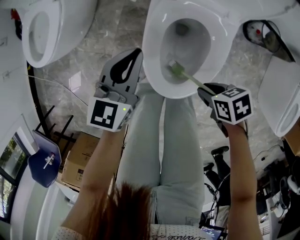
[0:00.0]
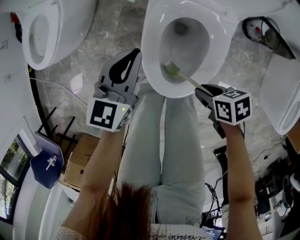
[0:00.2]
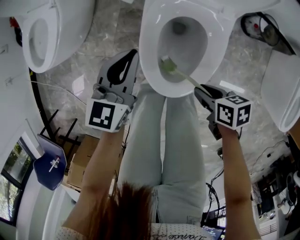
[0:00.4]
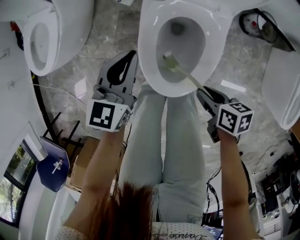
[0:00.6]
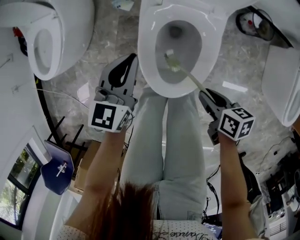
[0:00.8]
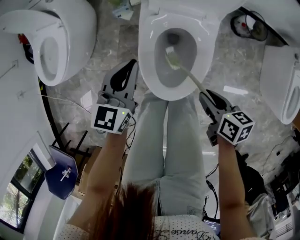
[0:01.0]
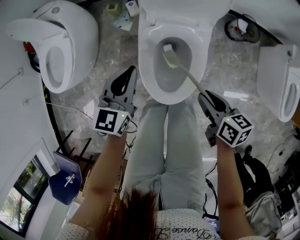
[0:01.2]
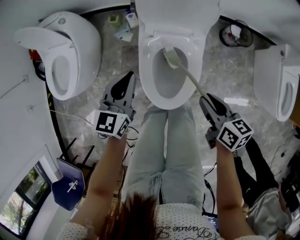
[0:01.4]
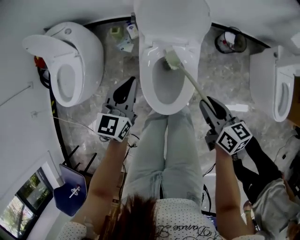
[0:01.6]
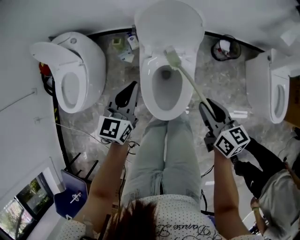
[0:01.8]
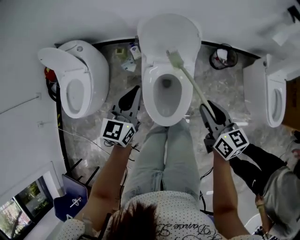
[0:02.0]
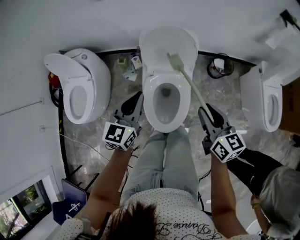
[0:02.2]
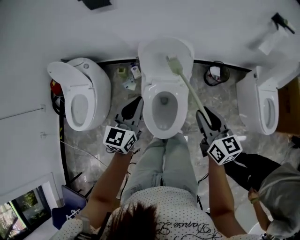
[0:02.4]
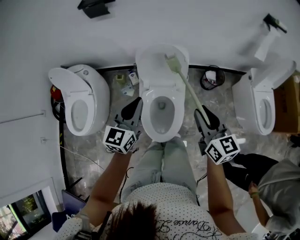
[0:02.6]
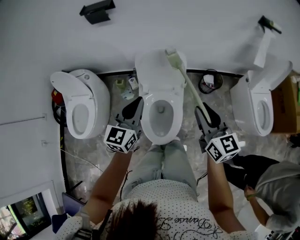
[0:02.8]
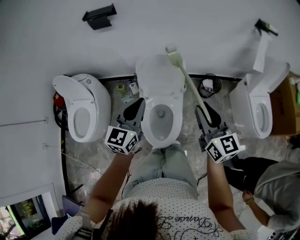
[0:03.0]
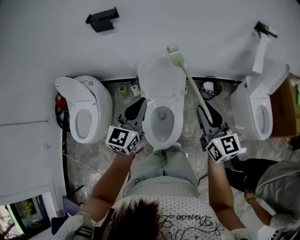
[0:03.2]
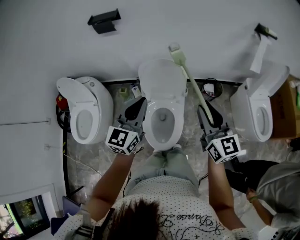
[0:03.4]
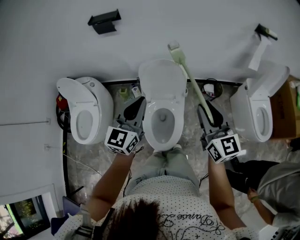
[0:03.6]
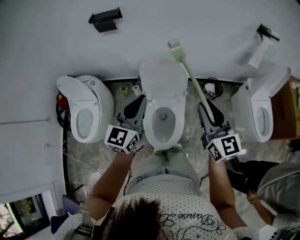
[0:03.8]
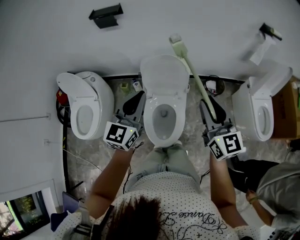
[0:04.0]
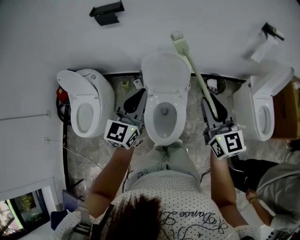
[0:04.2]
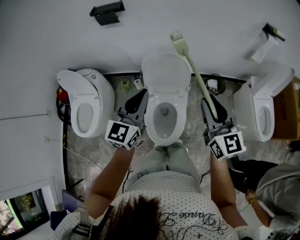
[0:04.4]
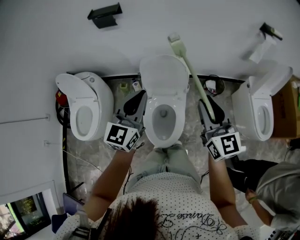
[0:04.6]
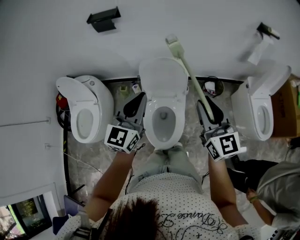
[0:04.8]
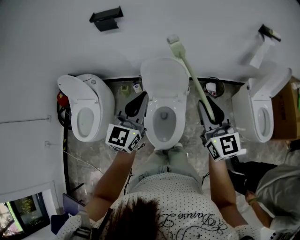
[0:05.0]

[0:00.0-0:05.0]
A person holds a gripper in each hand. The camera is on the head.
0:00.0 to 0:01.6: The grippers both shift upward by roughly 20 cm. The right gripper points its fingers about 30 degrees further upward.
0:01.6 to 0:03.4: Both grippers travel together upward, about 30 cm. The right gripper rotates roughly 40 degrees.
0:03.4 to 0:05.0: There are only small adjustments of the grippers.

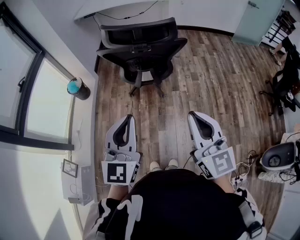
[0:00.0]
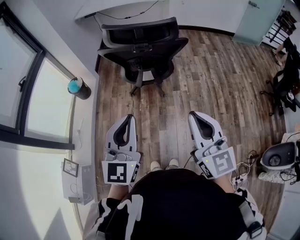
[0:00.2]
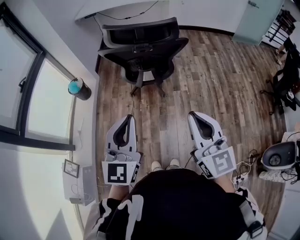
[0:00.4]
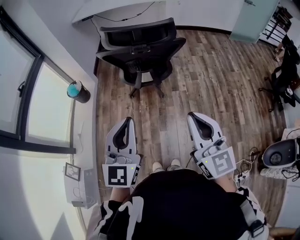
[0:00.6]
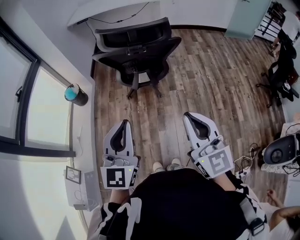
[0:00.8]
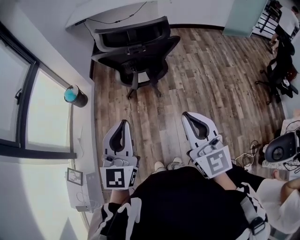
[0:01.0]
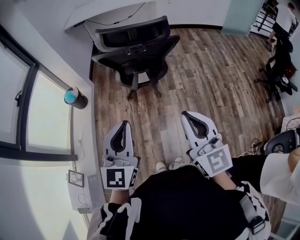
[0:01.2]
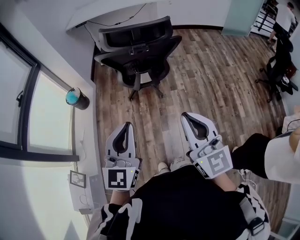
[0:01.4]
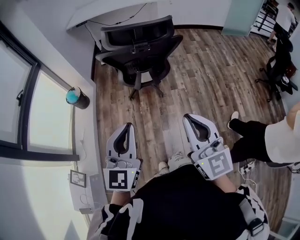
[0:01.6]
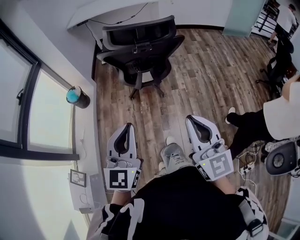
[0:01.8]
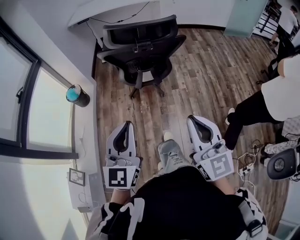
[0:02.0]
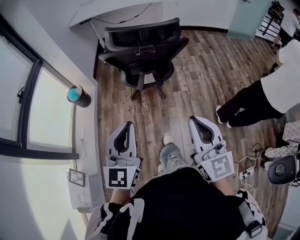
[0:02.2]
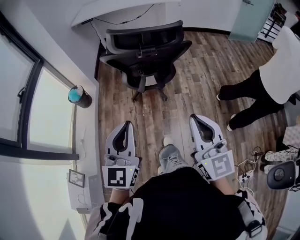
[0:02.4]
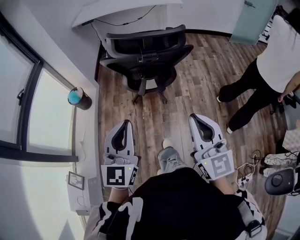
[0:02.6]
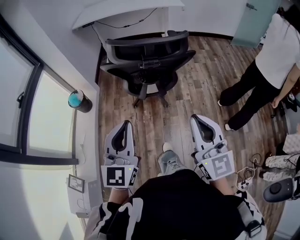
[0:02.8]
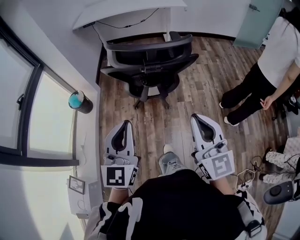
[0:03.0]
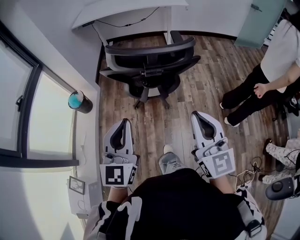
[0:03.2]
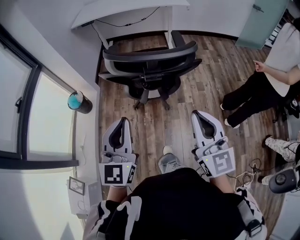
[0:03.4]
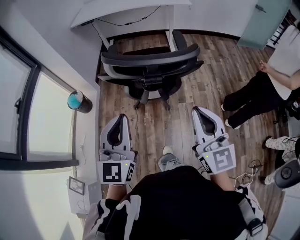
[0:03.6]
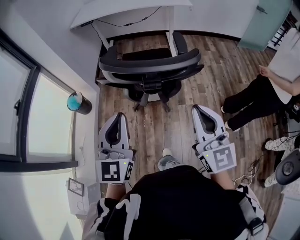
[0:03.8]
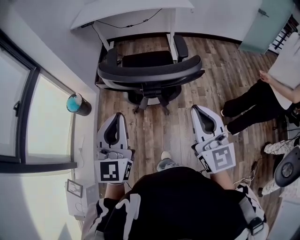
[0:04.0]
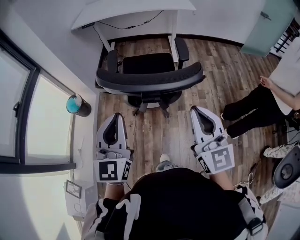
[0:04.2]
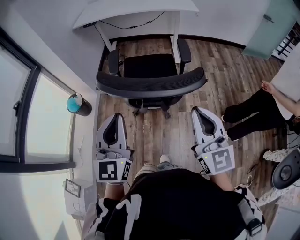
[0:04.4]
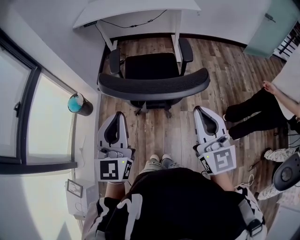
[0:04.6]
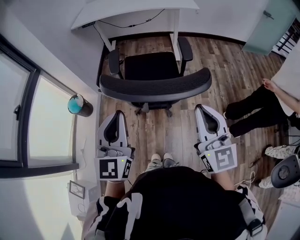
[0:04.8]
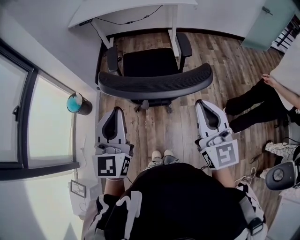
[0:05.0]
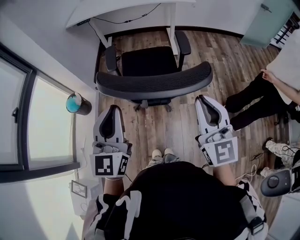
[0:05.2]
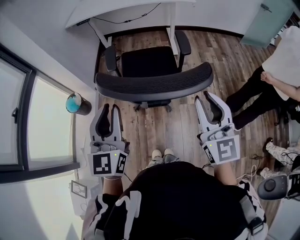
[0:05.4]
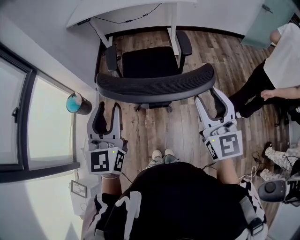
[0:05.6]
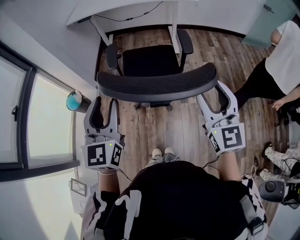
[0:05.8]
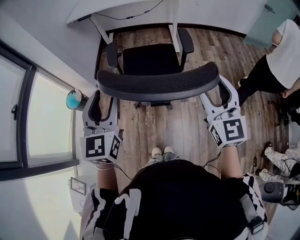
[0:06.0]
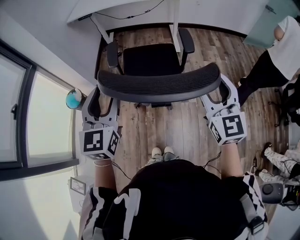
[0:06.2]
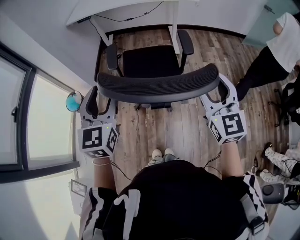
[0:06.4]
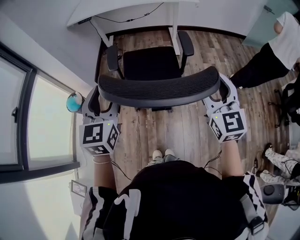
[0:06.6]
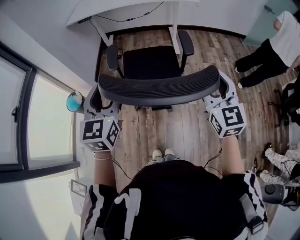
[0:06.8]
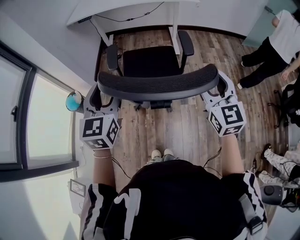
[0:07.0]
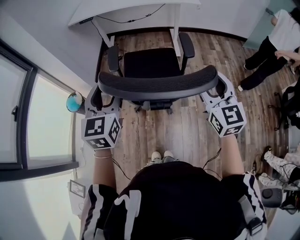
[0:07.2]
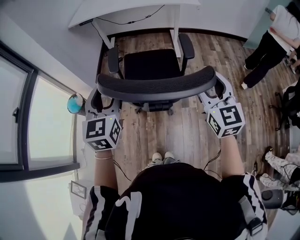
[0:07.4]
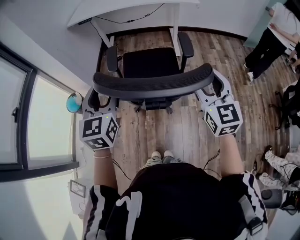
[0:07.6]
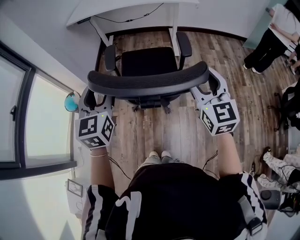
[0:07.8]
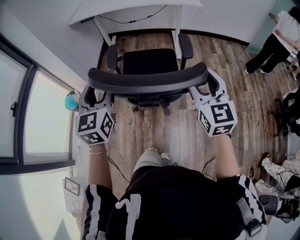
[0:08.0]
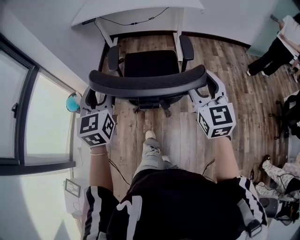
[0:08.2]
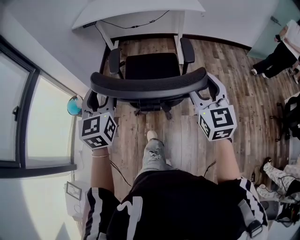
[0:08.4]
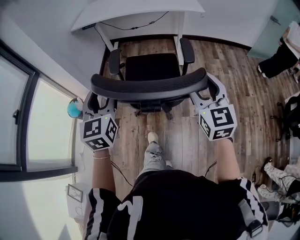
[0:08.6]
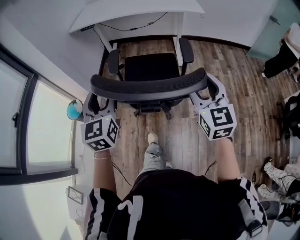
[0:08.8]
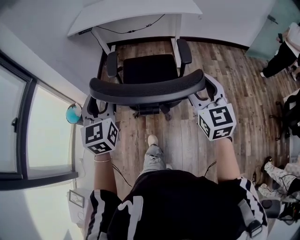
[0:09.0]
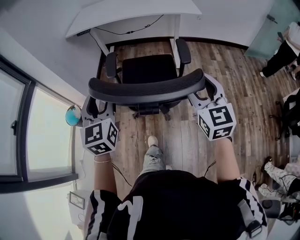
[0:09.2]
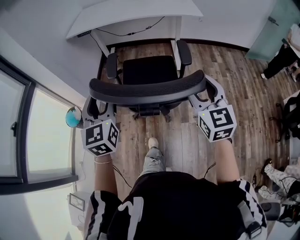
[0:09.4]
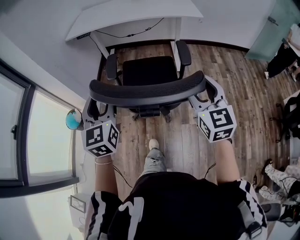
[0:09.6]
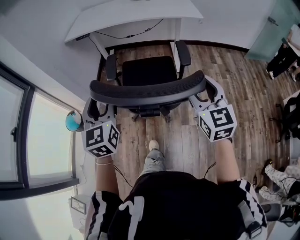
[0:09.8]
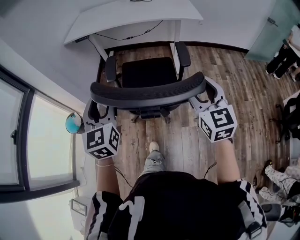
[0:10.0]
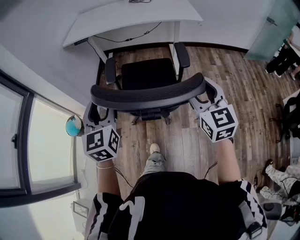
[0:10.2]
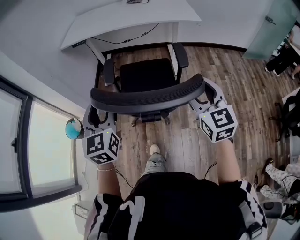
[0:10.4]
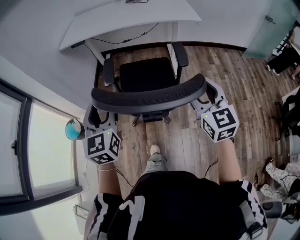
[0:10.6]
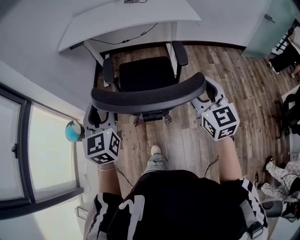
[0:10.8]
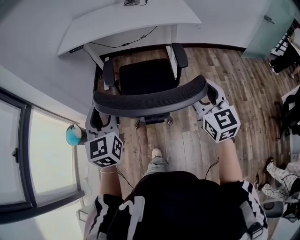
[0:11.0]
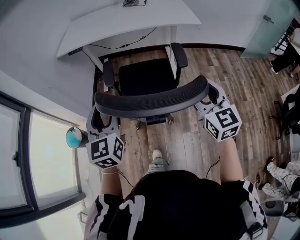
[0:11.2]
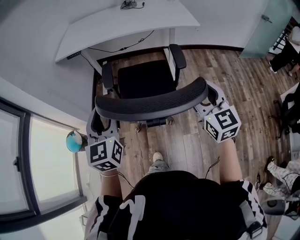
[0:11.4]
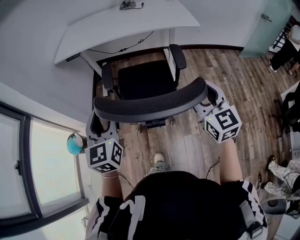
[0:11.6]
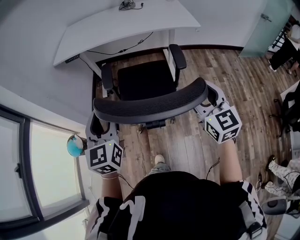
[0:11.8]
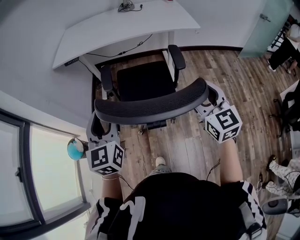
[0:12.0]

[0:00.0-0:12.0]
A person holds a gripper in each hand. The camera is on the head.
0:00.0 to 0:01.6: Both grippers travel together to the left, approximately 5 cm.
0:01.6 to 0:03.0: The grippers both shift forward by roughly 15 cm.
0:03.0 to 0:04.4: The two grippers go roughly 15 cm forward.
0:04.4 to 0:06.0: The two grippers go about 10 cm forward. The left gripper opens its fingers. The right gripper opens up.
0:06.0 to 0:07.6: The two grippers go some 5 cm forward.
0:07.6 to 0:09.0: Both grippers travel together forward, approximately 5 cm.
0:09.0 to 0:10.4: Both grippers move forward, about 10 cm.
0:10.4 to 0:12.0: The two grippers go some 10 cm forward.

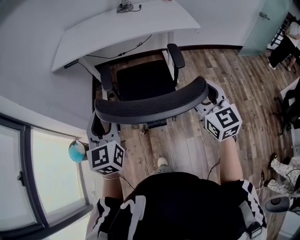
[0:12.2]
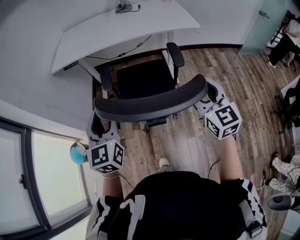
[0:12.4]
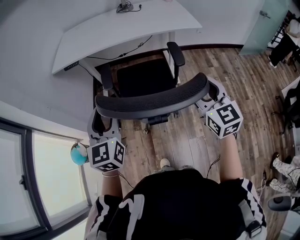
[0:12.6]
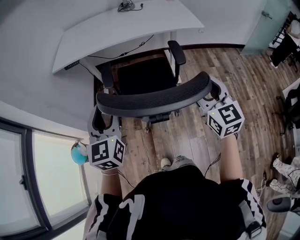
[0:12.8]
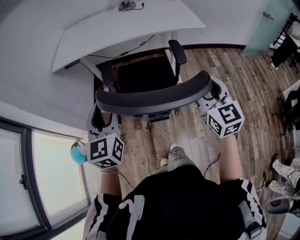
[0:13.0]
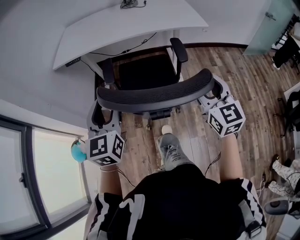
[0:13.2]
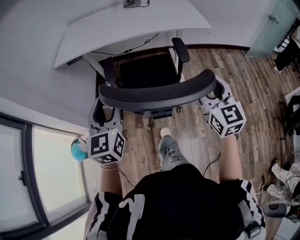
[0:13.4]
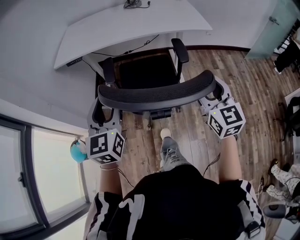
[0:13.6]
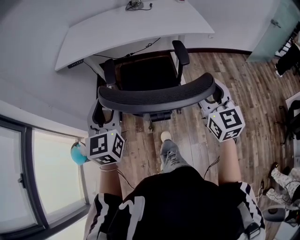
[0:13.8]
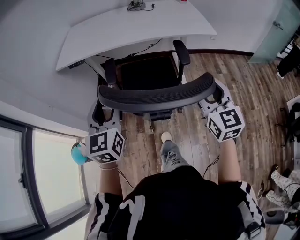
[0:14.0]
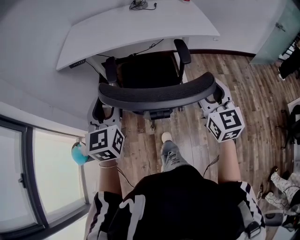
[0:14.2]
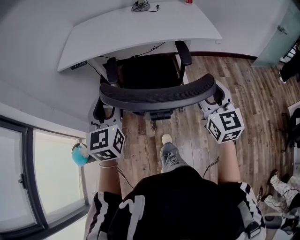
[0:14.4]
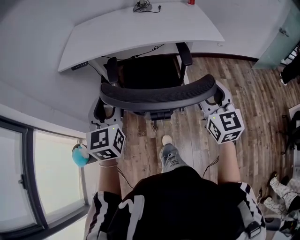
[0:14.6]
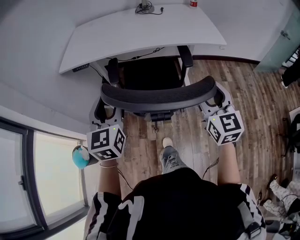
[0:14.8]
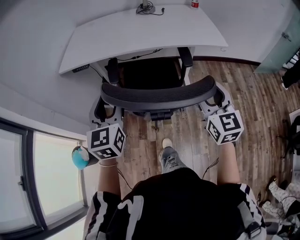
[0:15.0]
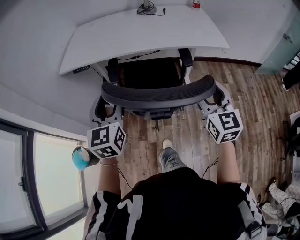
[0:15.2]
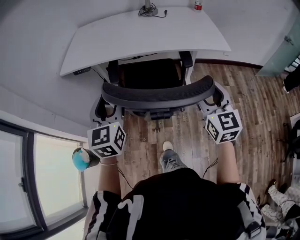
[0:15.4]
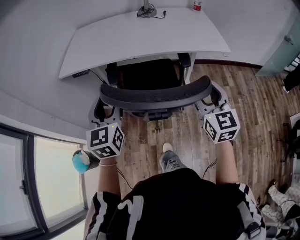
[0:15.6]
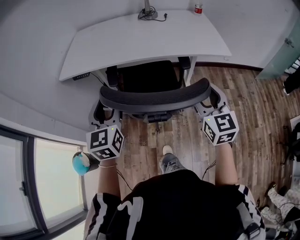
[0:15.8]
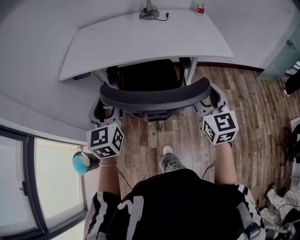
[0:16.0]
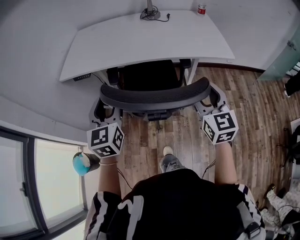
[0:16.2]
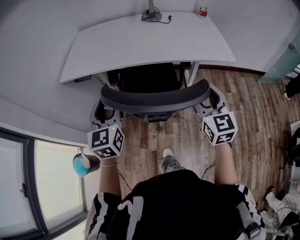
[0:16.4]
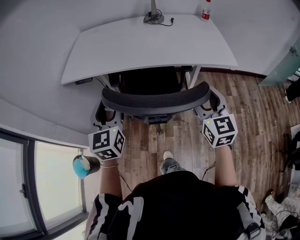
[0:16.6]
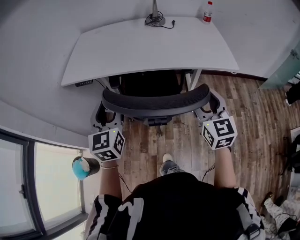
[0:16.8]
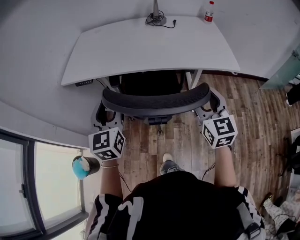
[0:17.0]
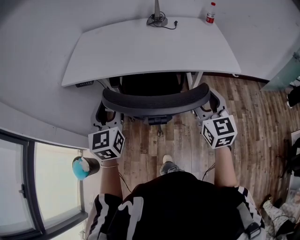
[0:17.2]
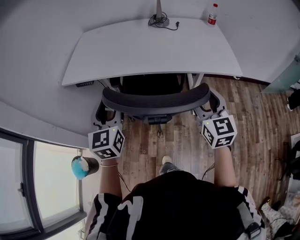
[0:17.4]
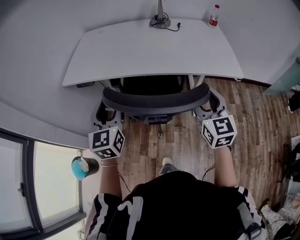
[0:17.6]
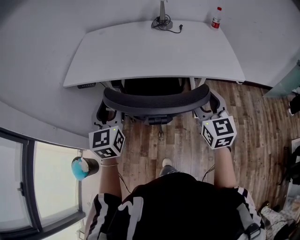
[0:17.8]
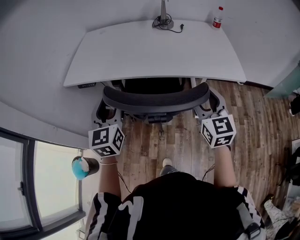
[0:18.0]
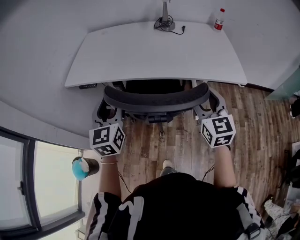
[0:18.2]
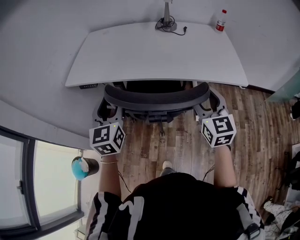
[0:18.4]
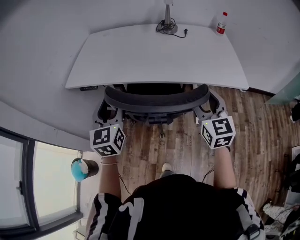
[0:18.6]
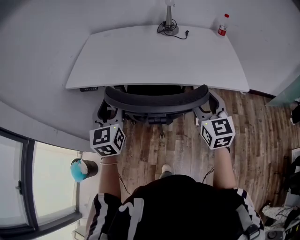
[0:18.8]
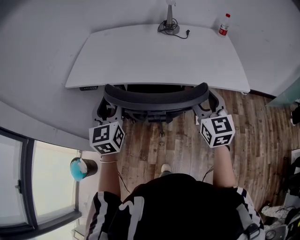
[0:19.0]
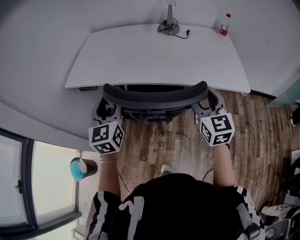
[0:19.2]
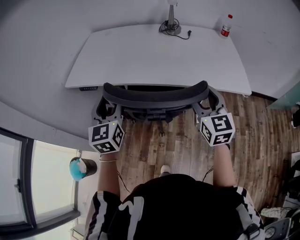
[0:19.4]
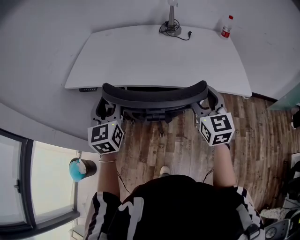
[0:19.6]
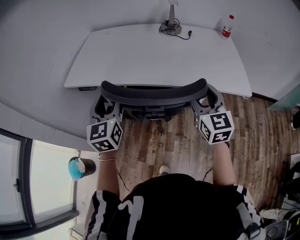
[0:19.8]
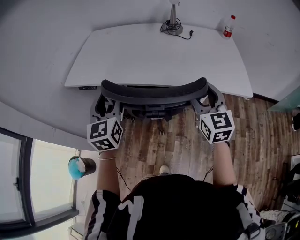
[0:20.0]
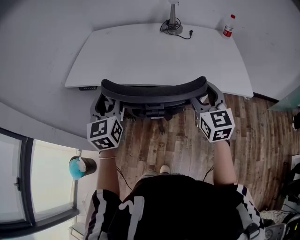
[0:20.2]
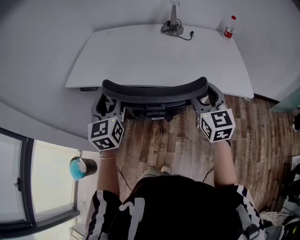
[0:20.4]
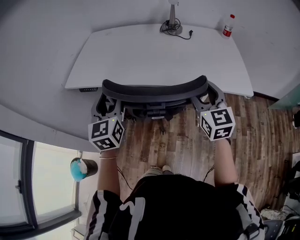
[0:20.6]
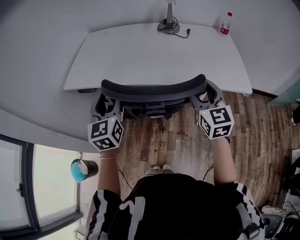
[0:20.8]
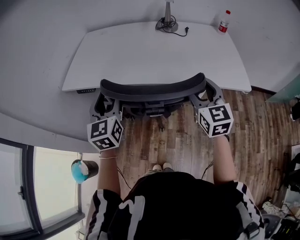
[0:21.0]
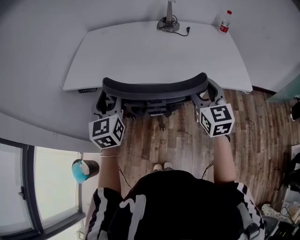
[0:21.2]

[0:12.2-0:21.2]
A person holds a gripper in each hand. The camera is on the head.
0:12.2 to 0:13.8: Both grippers travel together forward, approximately 10 cm.
0:13.8 to 0:15.2: The two grippers go approximately 10 cm forward.
0:15.2 to 0:16.6: Both grippers travel together forward, approximately 10 cm.
0:16.6 to 0:18.2: Both grippers move forward, about 10 cm.
0:18.2 to 0:19.8: The grippers both shift forward by about 5 cm.
0:19.8 to 0:21.2: The grippers move only a little.
